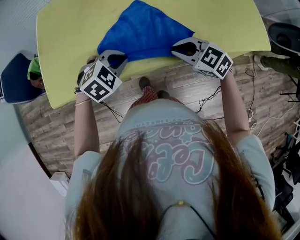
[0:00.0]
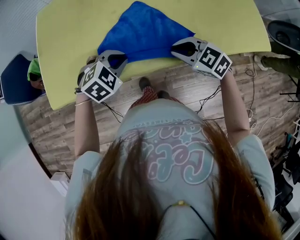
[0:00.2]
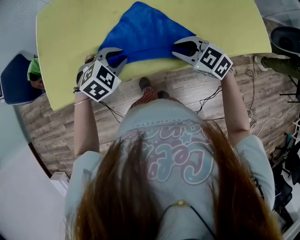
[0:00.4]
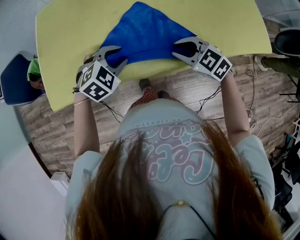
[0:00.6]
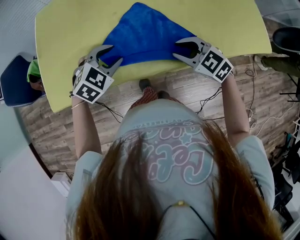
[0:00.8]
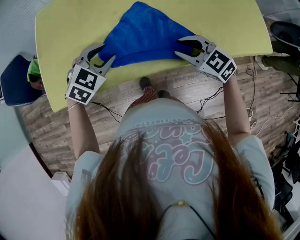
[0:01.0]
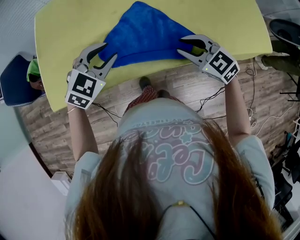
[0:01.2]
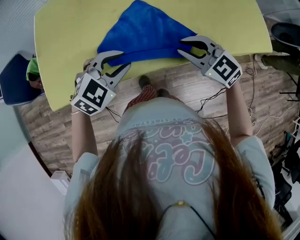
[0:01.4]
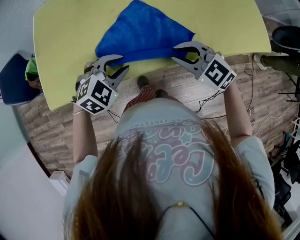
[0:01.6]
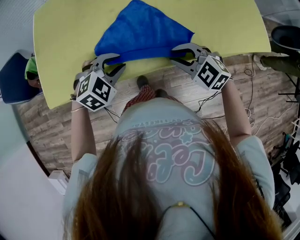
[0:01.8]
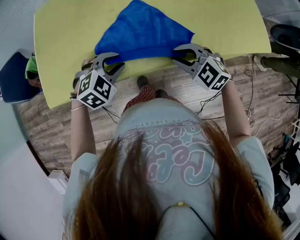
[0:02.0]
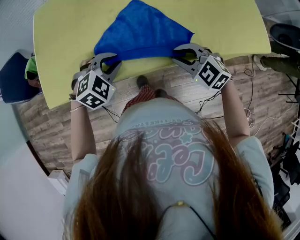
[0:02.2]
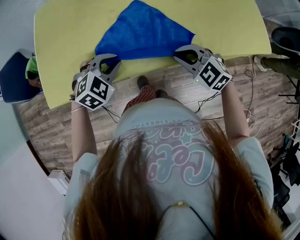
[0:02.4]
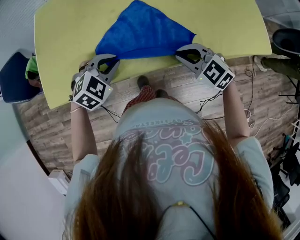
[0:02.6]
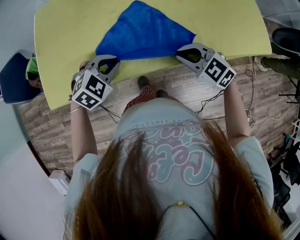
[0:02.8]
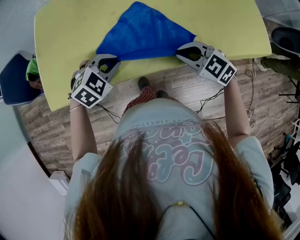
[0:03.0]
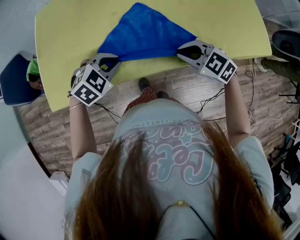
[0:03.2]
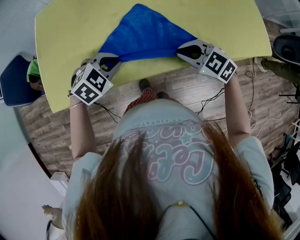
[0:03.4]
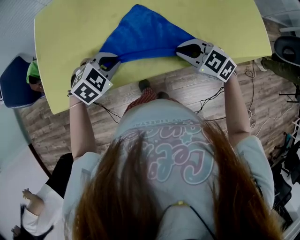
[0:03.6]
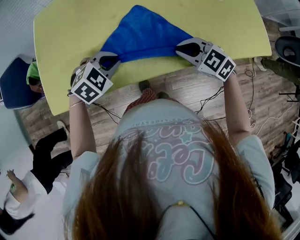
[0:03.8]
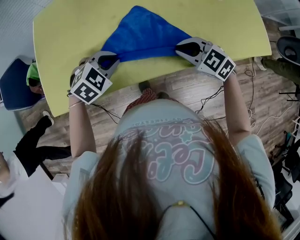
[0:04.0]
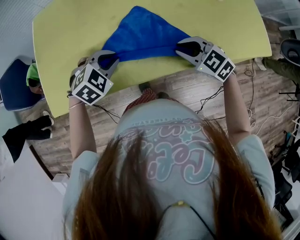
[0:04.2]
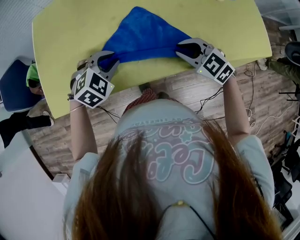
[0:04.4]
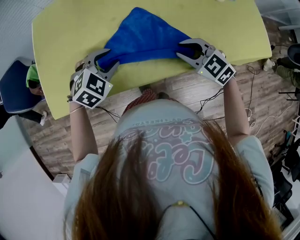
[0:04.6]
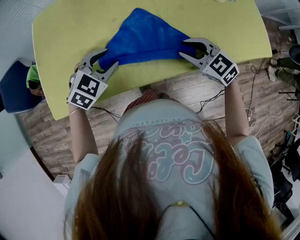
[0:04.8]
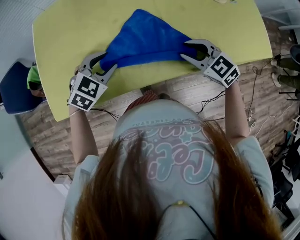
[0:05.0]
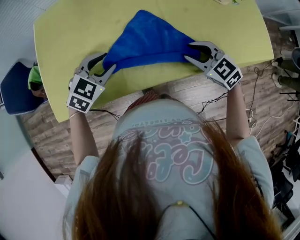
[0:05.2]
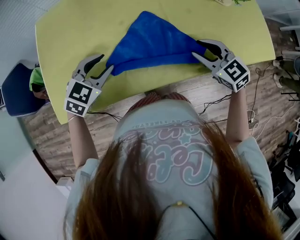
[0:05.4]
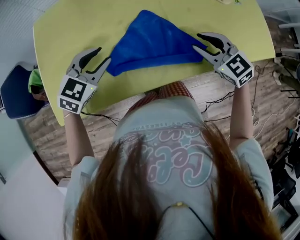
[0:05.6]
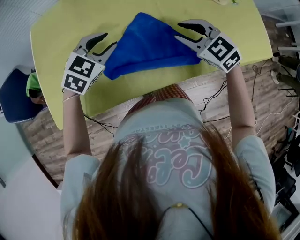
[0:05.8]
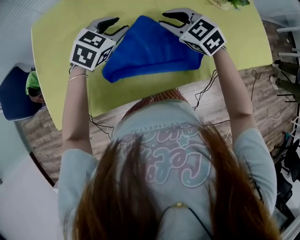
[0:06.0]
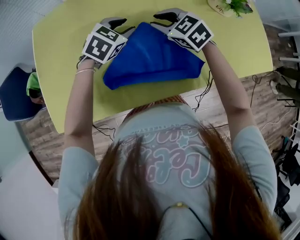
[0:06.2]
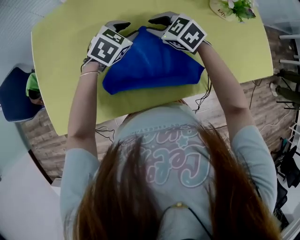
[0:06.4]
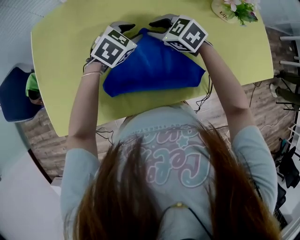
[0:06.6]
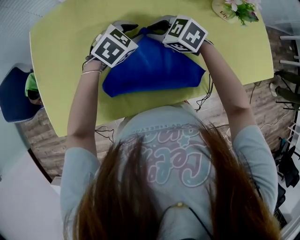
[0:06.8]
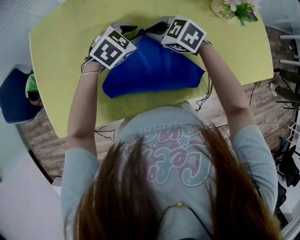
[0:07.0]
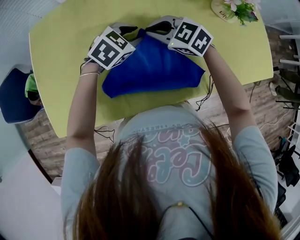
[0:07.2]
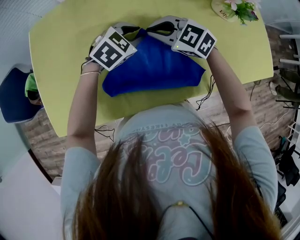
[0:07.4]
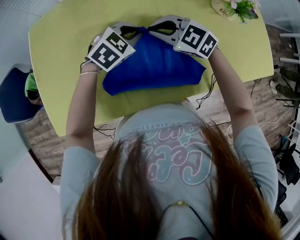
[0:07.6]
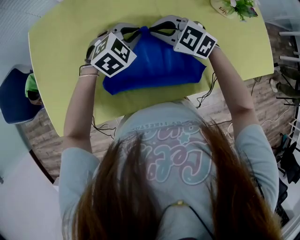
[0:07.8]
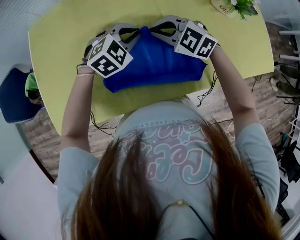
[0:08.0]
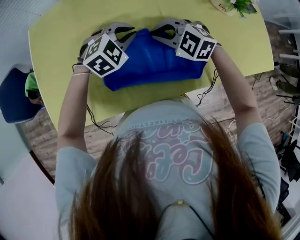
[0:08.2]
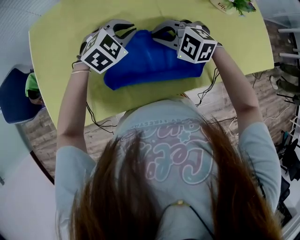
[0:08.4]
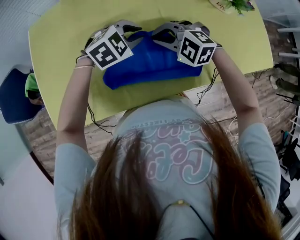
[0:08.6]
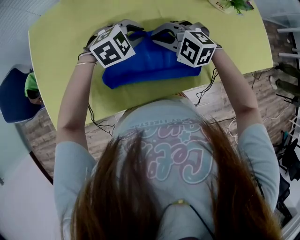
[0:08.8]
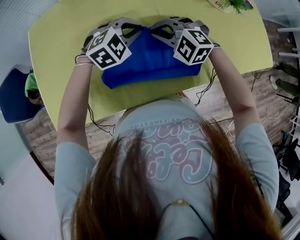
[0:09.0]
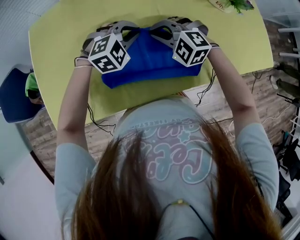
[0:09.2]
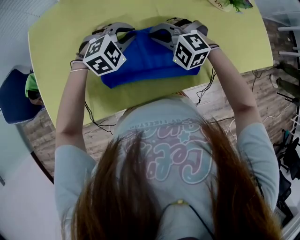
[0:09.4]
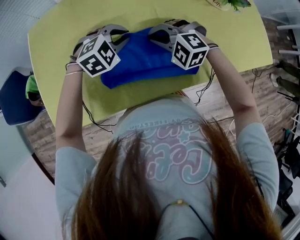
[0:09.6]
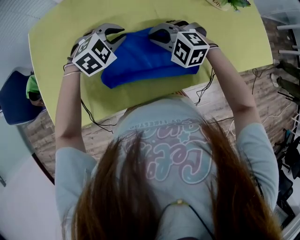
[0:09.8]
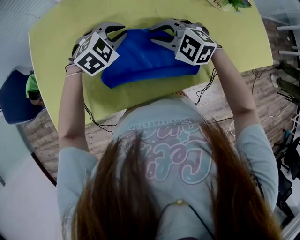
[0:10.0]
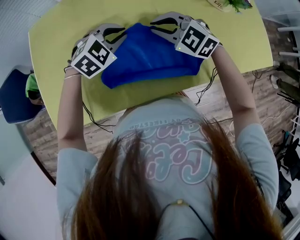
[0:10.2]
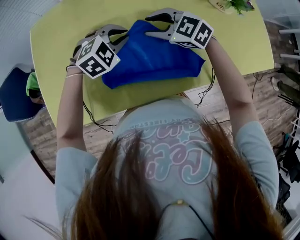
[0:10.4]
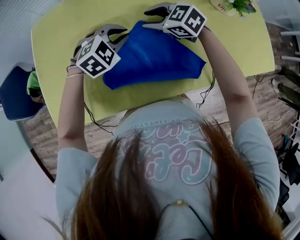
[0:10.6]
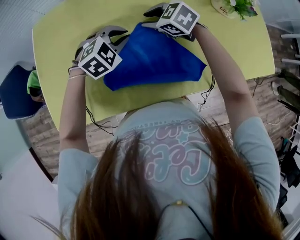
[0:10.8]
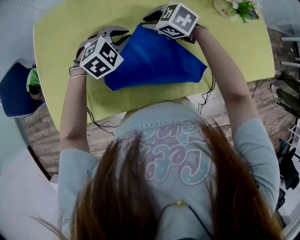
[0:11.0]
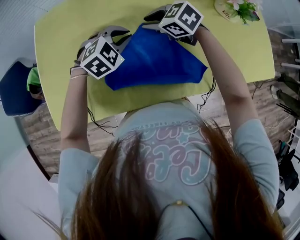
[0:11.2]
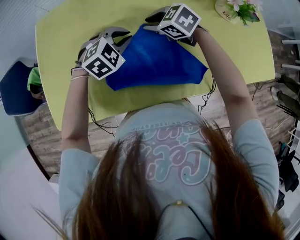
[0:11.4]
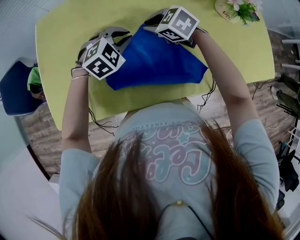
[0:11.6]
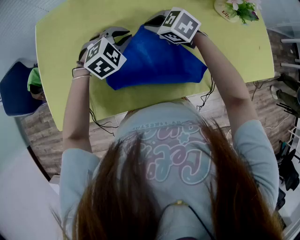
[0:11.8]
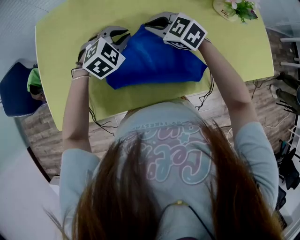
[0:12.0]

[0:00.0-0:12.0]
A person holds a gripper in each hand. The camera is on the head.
0:00.0 to 0:01.6: The left gripper opens up.
0:01.6 to 0:03.0: The left gripper closes up.
0:03.0 to 0:04.4: The grippers move only a little.
0:04.4 to 0:06.0: Both grippers travel together forward, some 15 cm. The left gripper changes its angle by some 20 degrees, and opens its fingers.
0:06.0 to 0:07.6: The left gripper travels to the right by some 5 cm, and closes up.
0:07.6 to 0:09.0: The right gripper changes its angle by roughly 30 degrees. The left gripper changes its angle by approximately 20 degrees.
0:09.0 to 0:10.4: The left gripper ends up about 5 cm from where it was. Meanwhile the right gripper turns by approximately 30 degrees, and opens up.
0:10.4 to 0:12.0: The right gripper closes up.

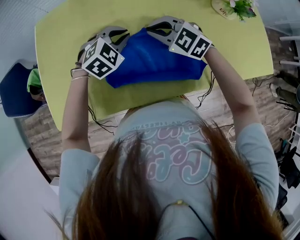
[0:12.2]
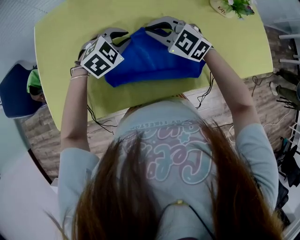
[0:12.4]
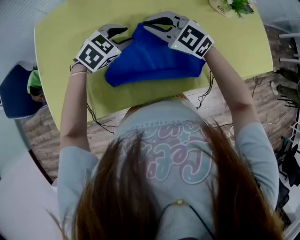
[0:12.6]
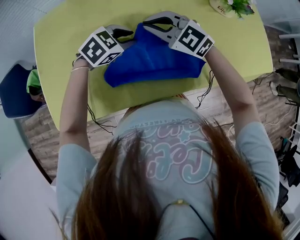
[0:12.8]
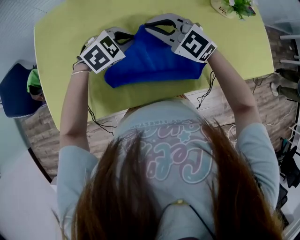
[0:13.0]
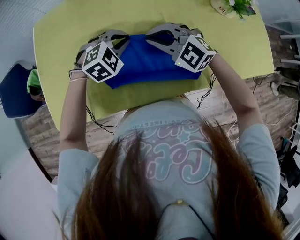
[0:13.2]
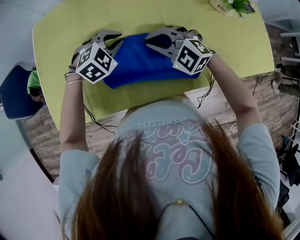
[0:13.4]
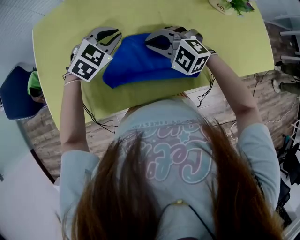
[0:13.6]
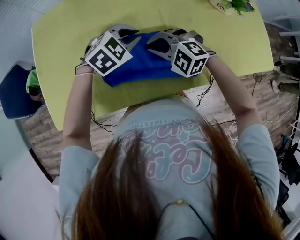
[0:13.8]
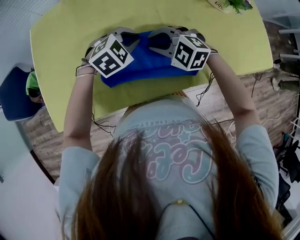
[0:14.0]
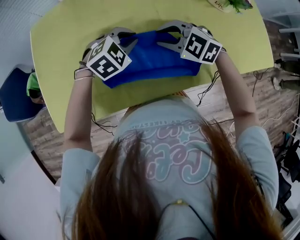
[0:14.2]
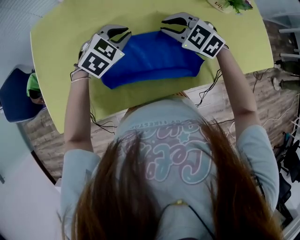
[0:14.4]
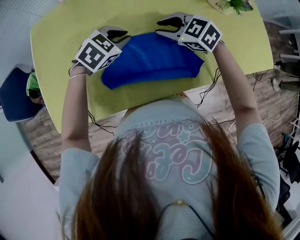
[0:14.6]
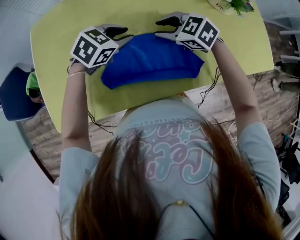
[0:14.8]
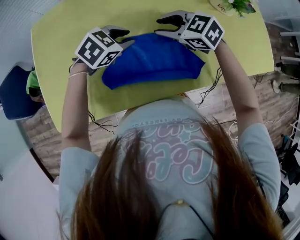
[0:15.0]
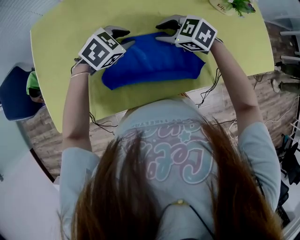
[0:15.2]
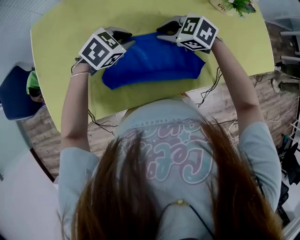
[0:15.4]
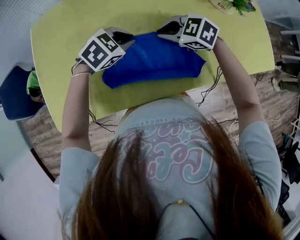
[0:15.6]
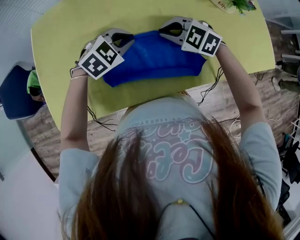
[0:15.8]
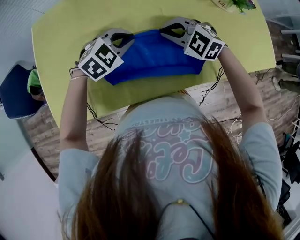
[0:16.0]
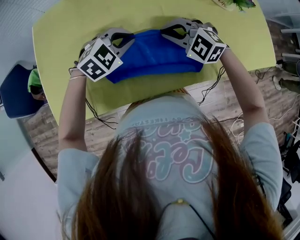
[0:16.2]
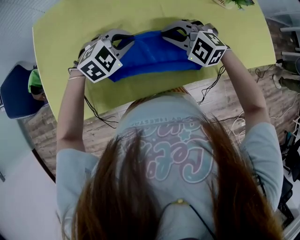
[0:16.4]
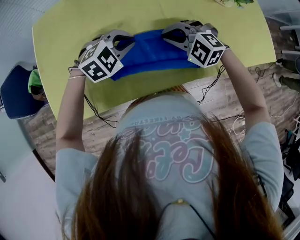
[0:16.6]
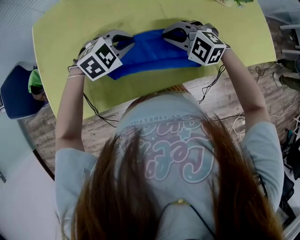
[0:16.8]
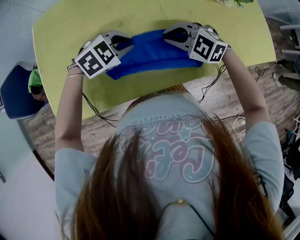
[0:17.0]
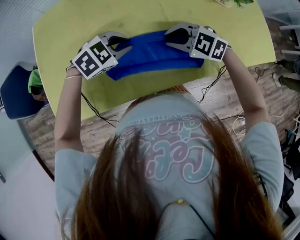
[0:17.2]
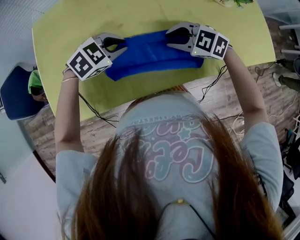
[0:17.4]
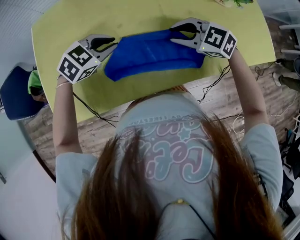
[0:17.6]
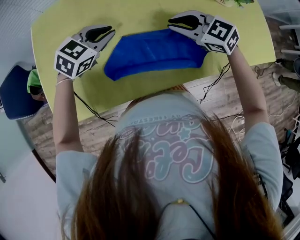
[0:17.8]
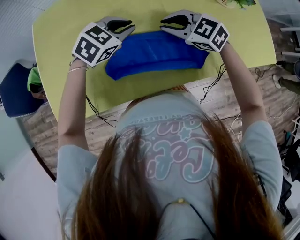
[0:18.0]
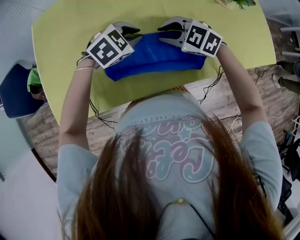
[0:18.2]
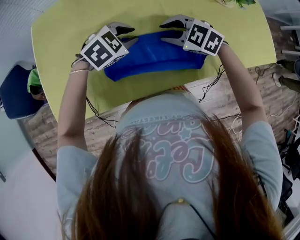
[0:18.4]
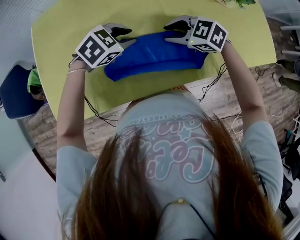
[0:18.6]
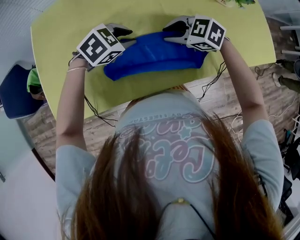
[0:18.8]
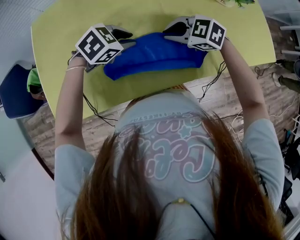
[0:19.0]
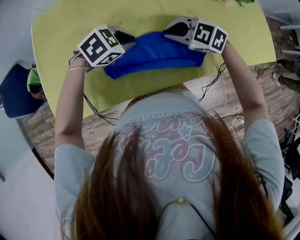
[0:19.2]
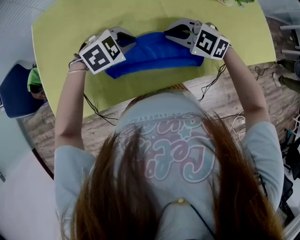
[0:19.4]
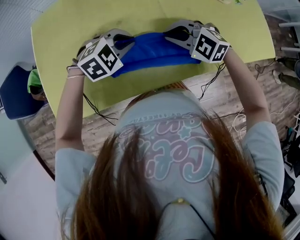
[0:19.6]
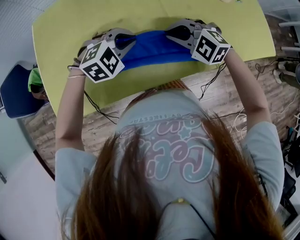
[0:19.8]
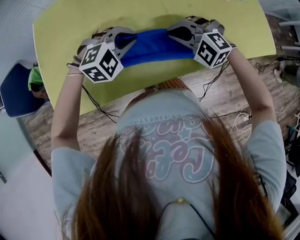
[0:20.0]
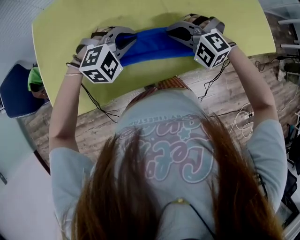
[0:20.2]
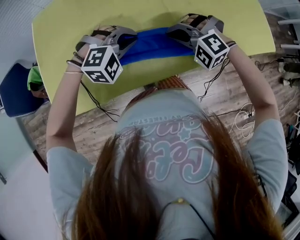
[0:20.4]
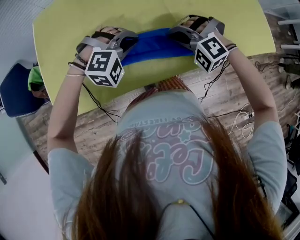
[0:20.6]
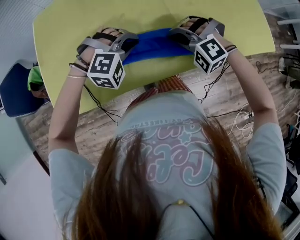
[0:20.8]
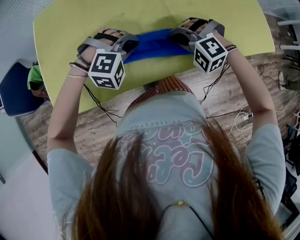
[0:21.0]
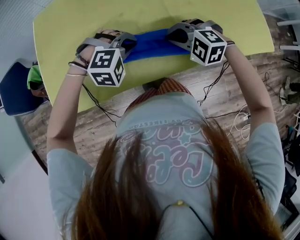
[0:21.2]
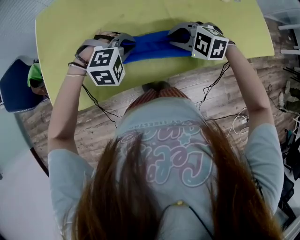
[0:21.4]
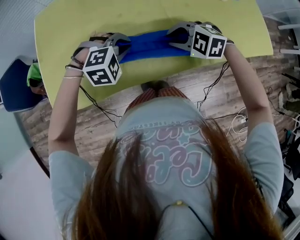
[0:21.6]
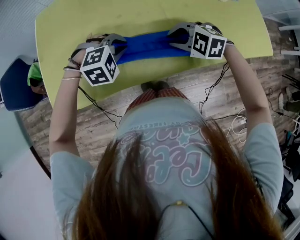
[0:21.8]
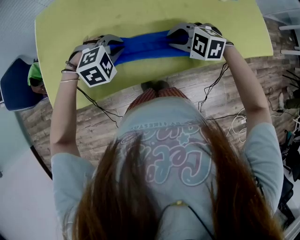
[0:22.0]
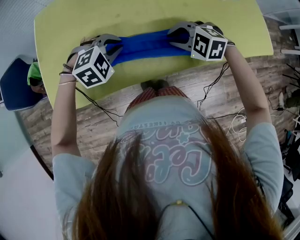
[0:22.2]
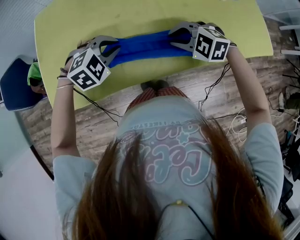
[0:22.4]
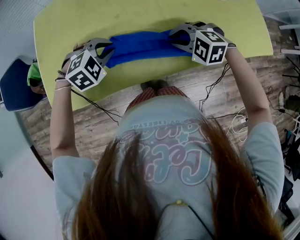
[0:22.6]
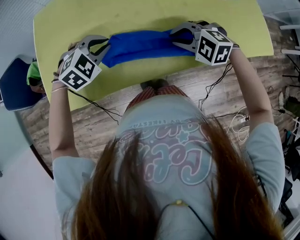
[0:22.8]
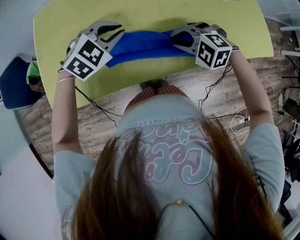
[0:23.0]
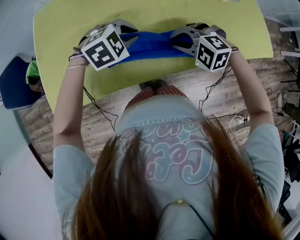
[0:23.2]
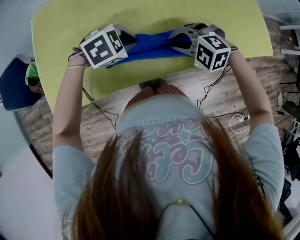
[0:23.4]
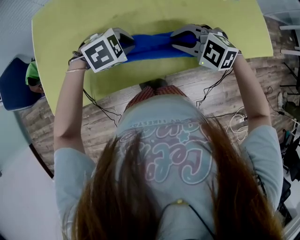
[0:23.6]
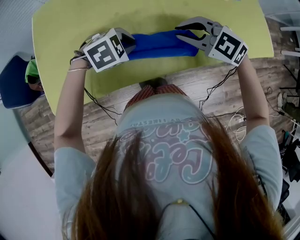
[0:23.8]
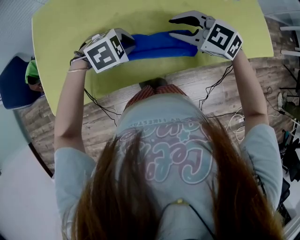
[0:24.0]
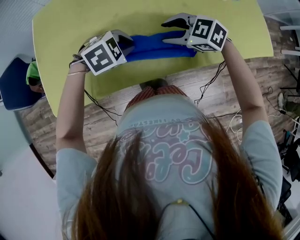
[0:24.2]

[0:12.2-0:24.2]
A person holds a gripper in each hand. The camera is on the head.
0:12.2 to 0:13.8: The right gripper changes place by approximately 5 cm; the left gripper changes place by approximately 5 cm, and opens and closes again.
0:13.8 to 0:15.2: The right gripper changes place by roughly 10 cm, changes its angle by approximately 30 degrees, and opens its fingers.
0:15.2 to 0:16.6: The left gripper rotates some 20 degrees; the right gripper shifts by about 5 cm, swivels roughly 40 degrees, and closes its fingers.
0:16.6 to 0:18.2: The right gripper swivels some 20 degrees.
0:18.2 to 0:19.8: The right gripper turns by about 20 degrees. Meanwhile the left gripper changes its angle by roughly 20 degrees.
0:19.8 to 0:21.2: The left gripper changes its angle by about 20 degrees.
0:21.2 to 0:22.6: The left gripper is displaced to the left by roughly 5 cm, and turns by roughly 30 degrees.
0:22.6 to 0:24.2: The left gripper shifts by about 5 cm, while the right gripper changes its angle by about 30 degrees, and opens up.
